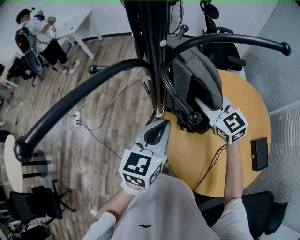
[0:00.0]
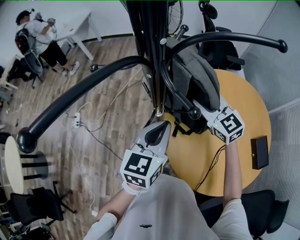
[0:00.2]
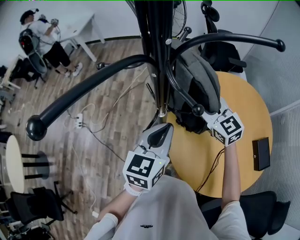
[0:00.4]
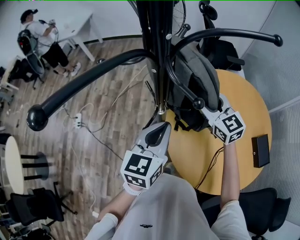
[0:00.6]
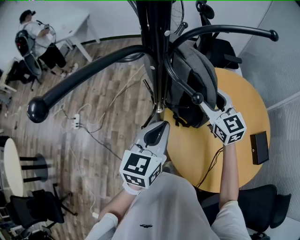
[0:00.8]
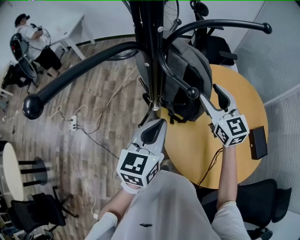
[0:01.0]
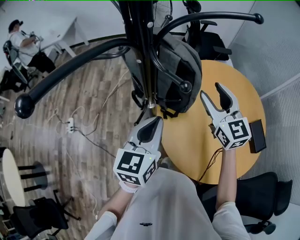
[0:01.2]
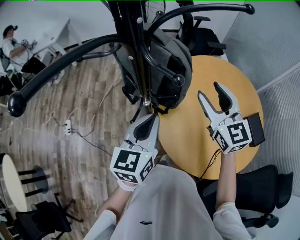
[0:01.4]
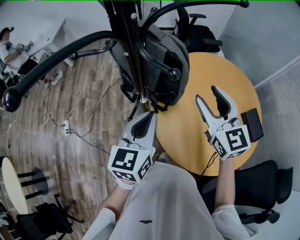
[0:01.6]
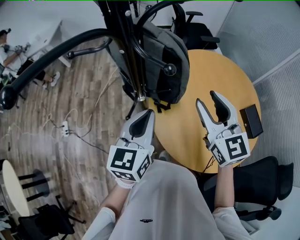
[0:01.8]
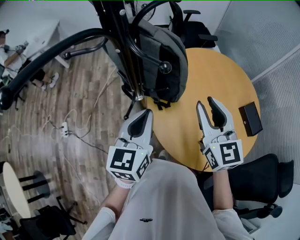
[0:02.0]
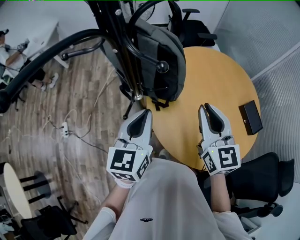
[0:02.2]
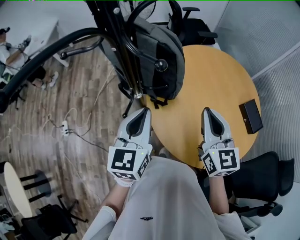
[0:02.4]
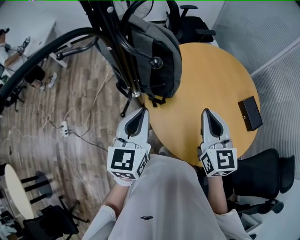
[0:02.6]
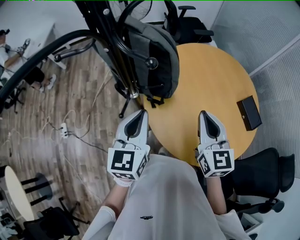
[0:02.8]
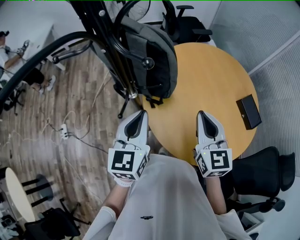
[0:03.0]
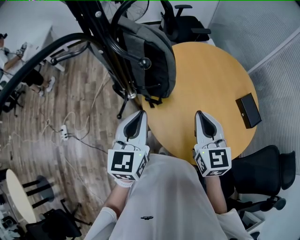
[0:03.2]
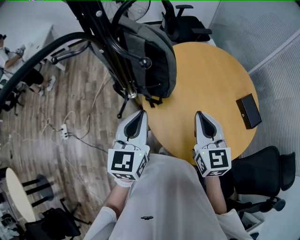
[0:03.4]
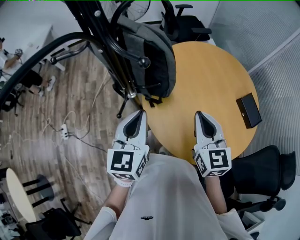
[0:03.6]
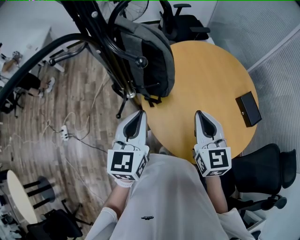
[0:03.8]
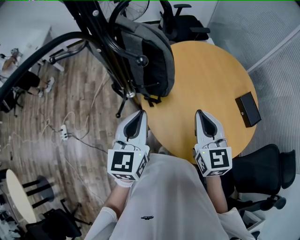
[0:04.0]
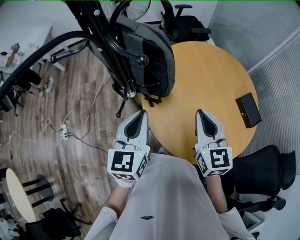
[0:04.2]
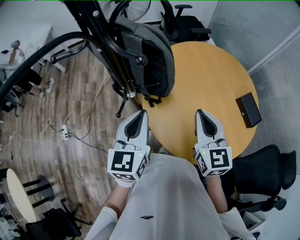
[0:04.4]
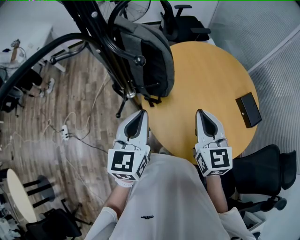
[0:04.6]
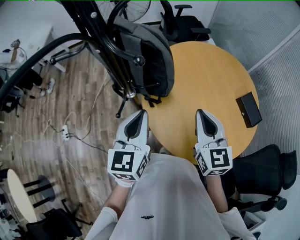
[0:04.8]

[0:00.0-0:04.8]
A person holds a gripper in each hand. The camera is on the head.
0:00.0 to 0:01.6: The right gripper travels backward, upward and to the right by approximately 15 cm, changes its angle by about 30 degrees, and opens up.
0:01.6 to 0:03.2: The right gripper heads backward and downward, covering approximately 10 cm, and closes.
0:03.2 to 0:04.8: Both grippers stay about where they are.

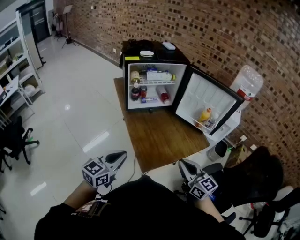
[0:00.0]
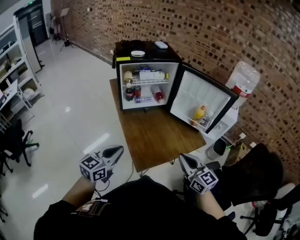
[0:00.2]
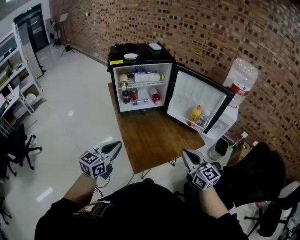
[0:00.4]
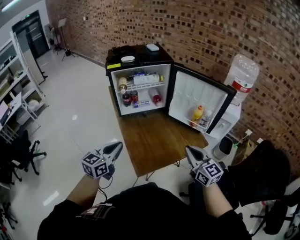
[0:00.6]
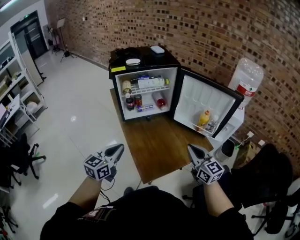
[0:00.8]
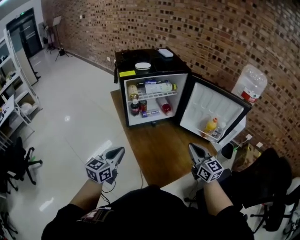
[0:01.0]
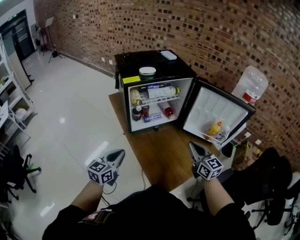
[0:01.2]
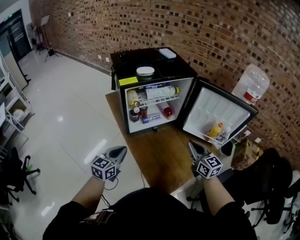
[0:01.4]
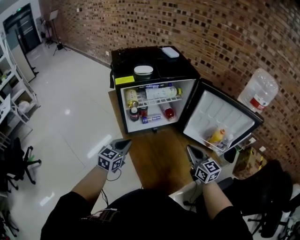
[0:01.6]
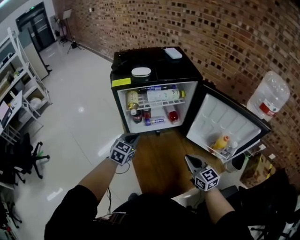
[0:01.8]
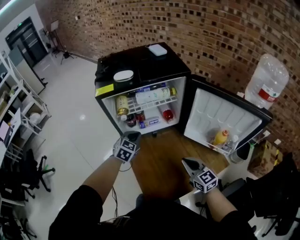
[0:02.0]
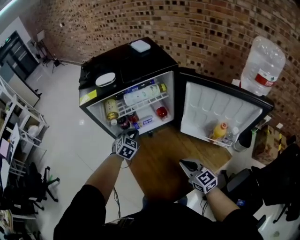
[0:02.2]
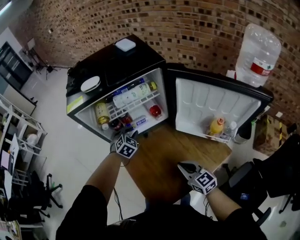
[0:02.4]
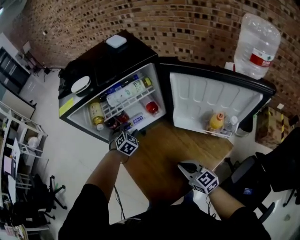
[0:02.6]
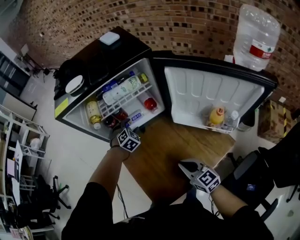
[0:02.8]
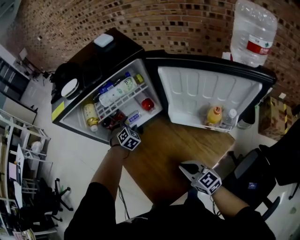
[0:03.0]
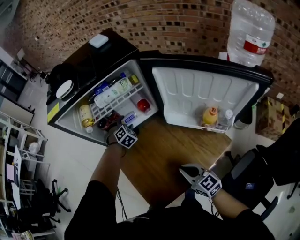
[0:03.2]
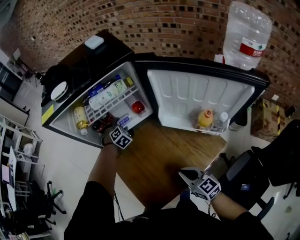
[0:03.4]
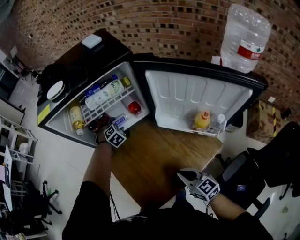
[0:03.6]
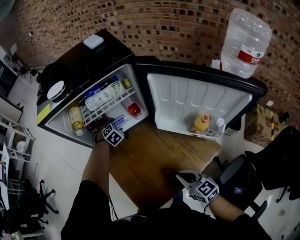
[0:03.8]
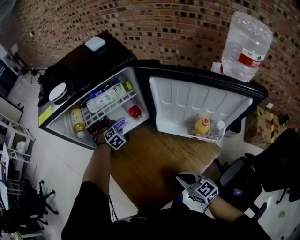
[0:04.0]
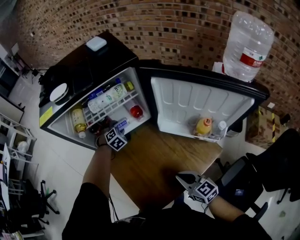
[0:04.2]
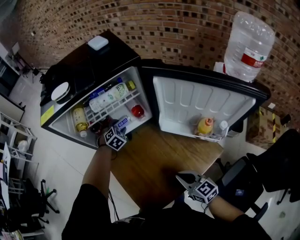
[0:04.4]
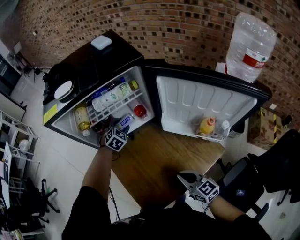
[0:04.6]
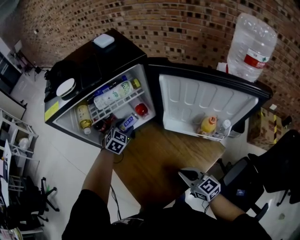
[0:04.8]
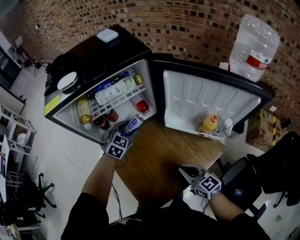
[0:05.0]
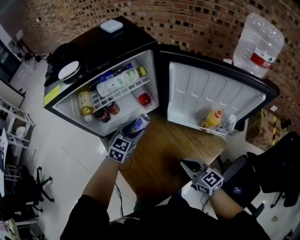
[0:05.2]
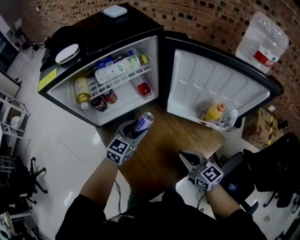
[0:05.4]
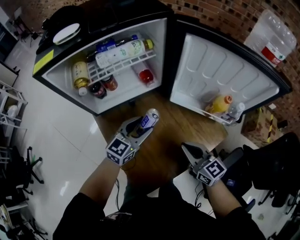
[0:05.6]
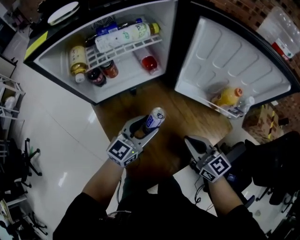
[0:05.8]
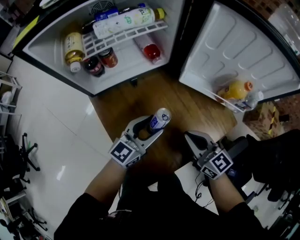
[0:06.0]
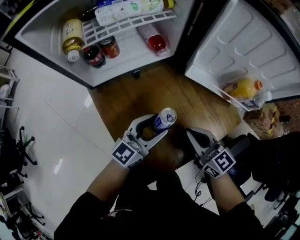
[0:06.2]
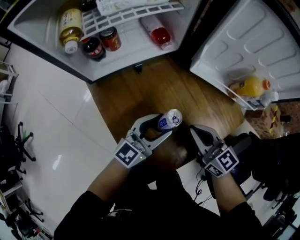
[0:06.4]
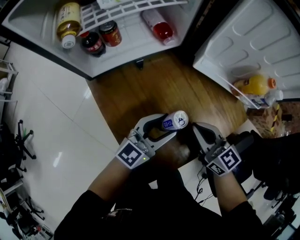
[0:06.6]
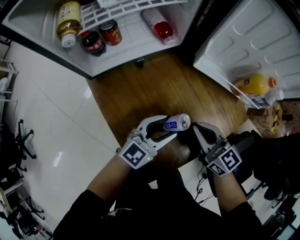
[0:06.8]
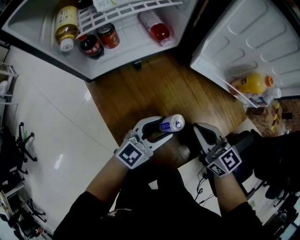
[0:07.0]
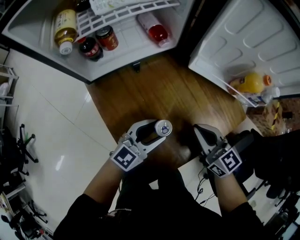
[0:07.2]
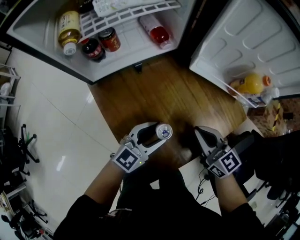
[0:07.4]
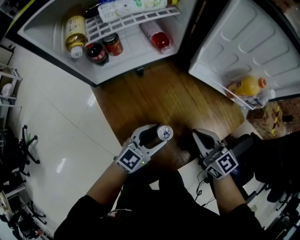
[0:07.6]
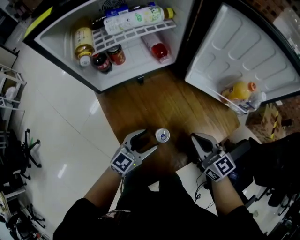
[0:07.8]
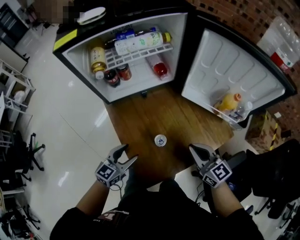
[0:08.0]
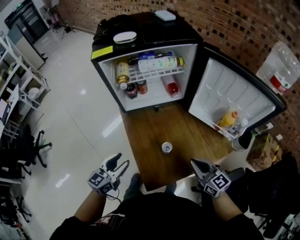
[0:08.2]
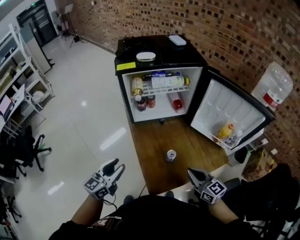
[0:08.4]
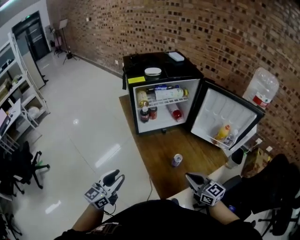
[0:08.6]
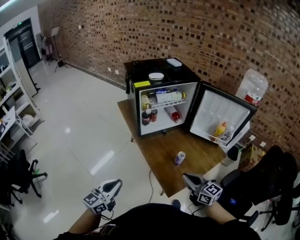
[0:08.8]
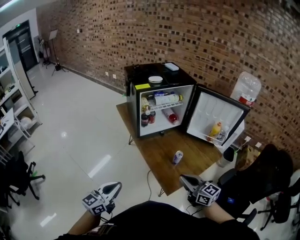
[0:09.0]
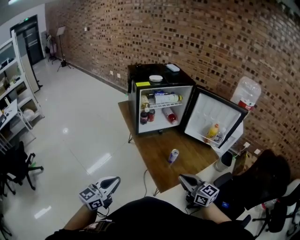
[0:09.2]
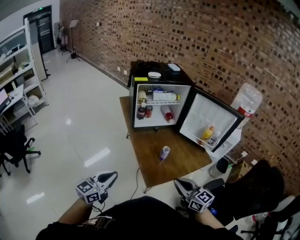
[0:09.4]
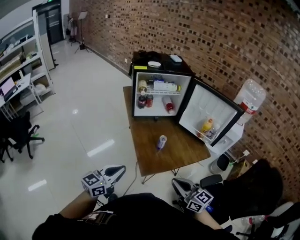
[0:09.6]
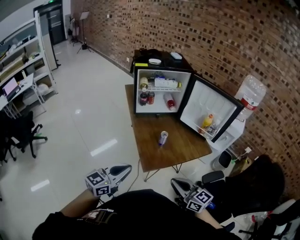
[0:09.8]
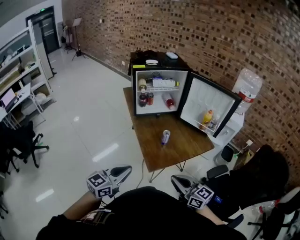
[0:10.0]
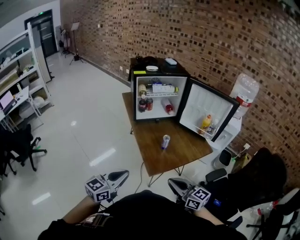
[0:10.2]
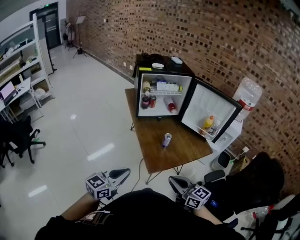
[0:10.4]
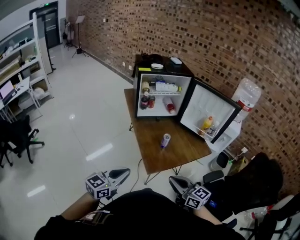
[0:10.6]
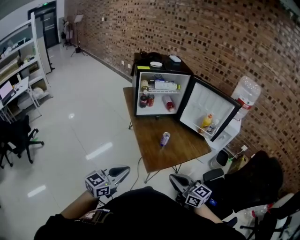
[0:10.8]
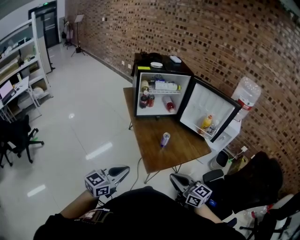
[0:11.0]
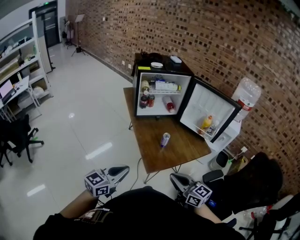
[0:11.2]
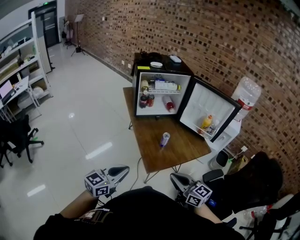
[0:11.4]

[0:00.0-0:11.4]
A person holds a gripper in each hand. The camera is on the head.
0:00.0 to 0:01.4: The two grippers go some 30 cm forward.
0:01.4 to 0:02.8: The left gripper is displaced forward, to the right and downward by approximately 40 cm, angles its fingers downward, by approximately 30 degrees, and opens its fingers. The right gripper is displaced downward by some 20 cm.
0:02.8 to 0:04.2: The right gripper ends up about 5 cm from where it was. The left gripper shifts by roughly 5 cm.
0:04.2 to 0:05.6: The left gripper shifts by roughly 25 cm, and points its fingers about 40 degrees further upward.
0:05.6 to 0:07.2: The left gripper is displaced backward and downward by about 15 cm; the right gripper goes about 5 cm downward.
0:07.2 to 0:08.6: The right gripper is displaced upward, backward and to the left by approximately 25 cm. The left gripper moves to the left, upward and backward, roughly 40 cm, and swivels roughly 30 degrees.
0:08.6 to 0:10.0: The right gripper is displaced backward by roughly 25 cm; the left gripper heads backward and to the right, covering about 25 cm, and closes up.
0:10.0 to 0:11.4: There are only small adjustments of the grippers.

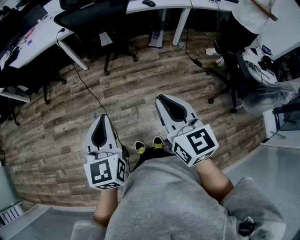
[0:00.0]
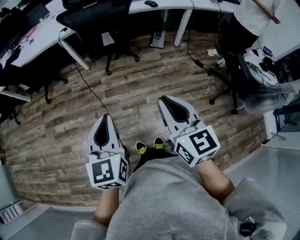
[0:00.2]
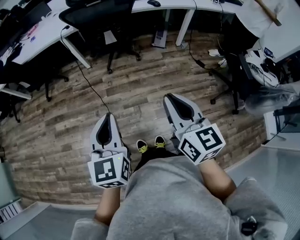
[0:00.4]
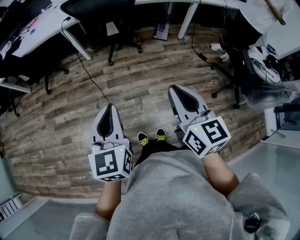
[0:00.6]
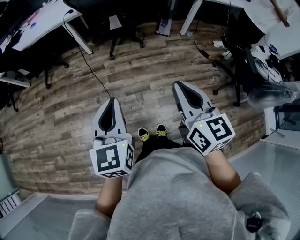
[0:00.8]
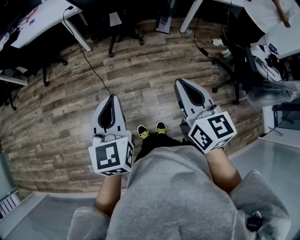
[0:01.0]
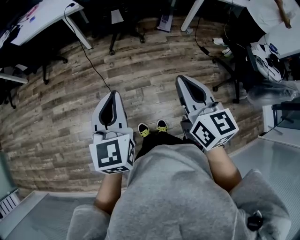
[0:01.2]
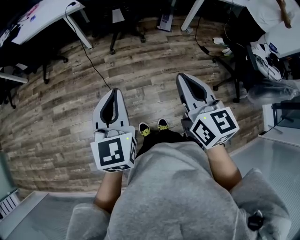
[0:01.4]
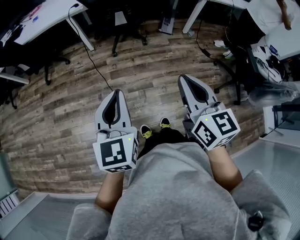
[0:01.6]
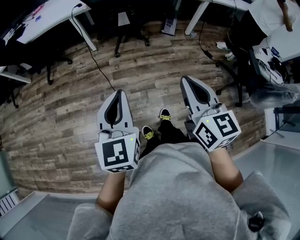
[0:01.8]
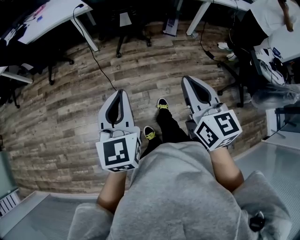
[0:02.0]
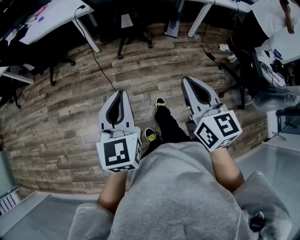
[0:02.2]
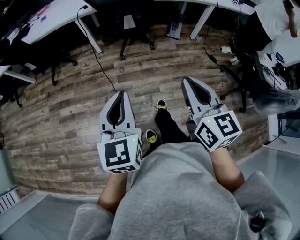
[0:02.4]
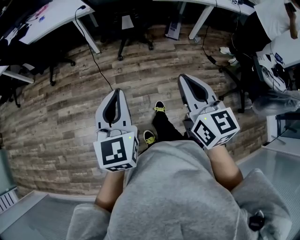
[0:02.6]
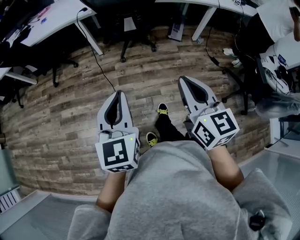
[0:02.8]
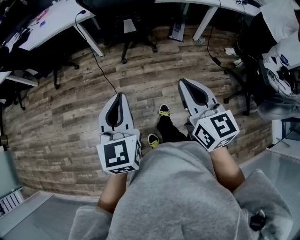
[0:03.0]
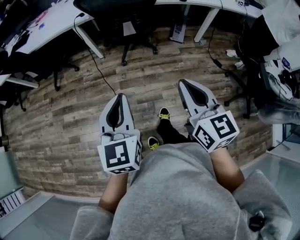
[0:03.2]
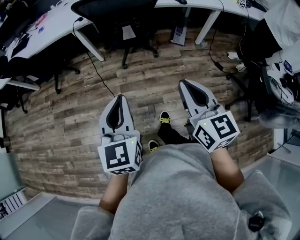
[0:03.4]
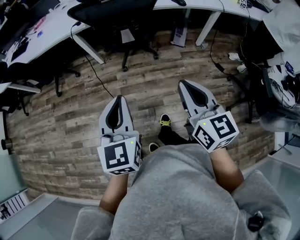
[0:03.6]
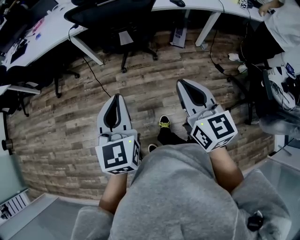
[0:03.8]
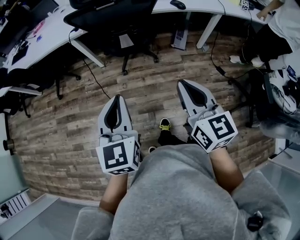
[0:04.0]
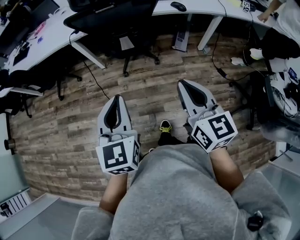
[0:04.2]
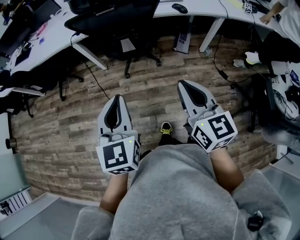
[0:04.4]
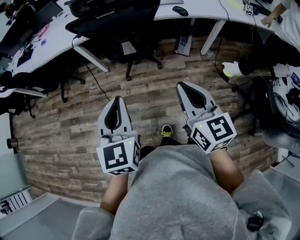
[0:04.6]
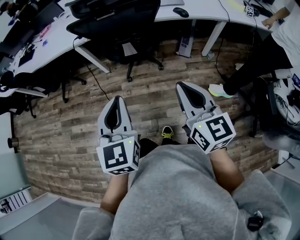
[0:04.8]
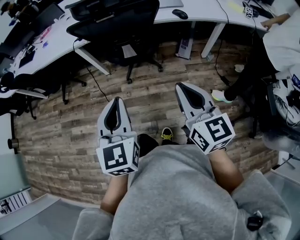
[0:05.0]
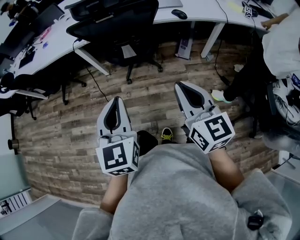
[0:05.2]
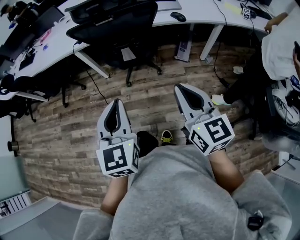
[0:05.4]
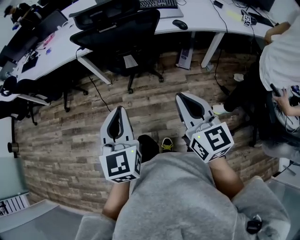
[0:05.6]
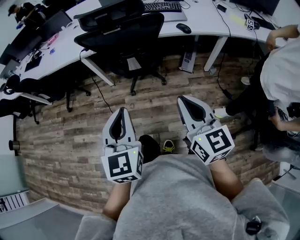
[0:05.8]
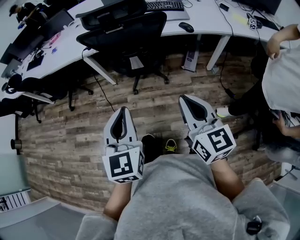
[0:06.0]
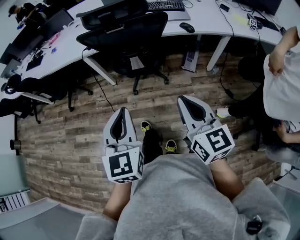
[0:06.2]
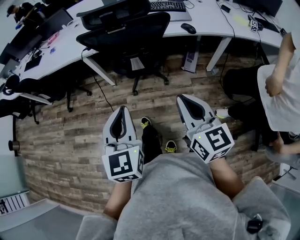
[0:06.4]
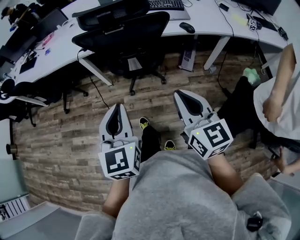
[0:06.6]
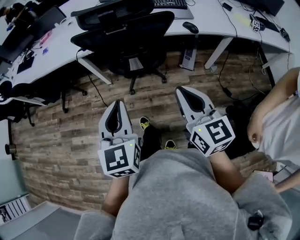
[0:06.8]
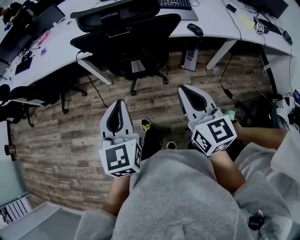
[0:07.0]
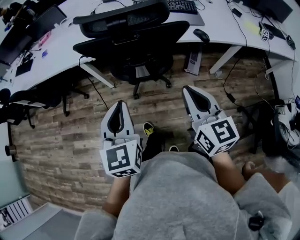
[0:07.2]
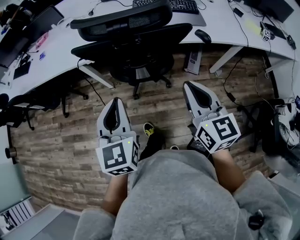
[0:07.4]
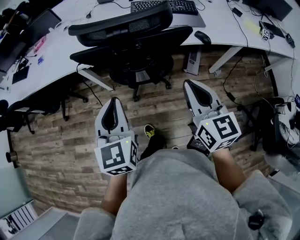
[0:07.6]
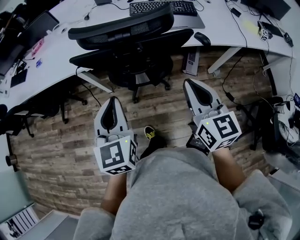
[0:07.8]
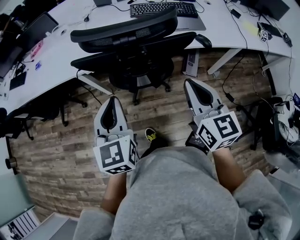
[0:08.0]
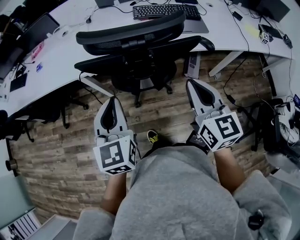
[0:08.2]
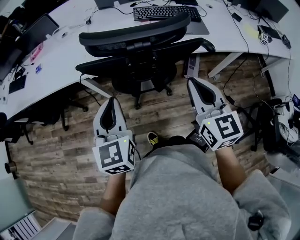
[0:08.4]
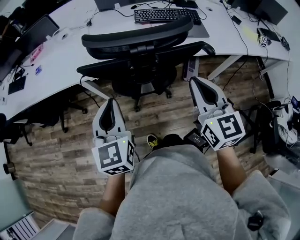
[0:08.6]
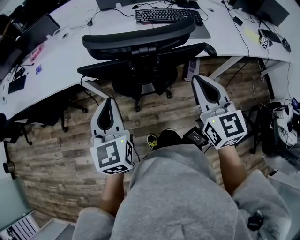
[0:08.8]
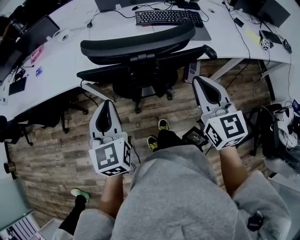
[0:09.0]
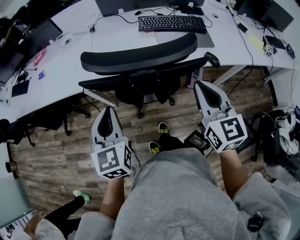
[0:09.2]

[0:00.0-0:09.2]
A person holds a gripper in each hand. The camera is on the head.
0:00.0 to 0:01.6: The grippers both shift to the left by roughly 5 cm.
0:01.6 to 0:03.0: Both grippers move forward, approximately 5 cm.
0:03.0 to 0:04.6: Both grippers move forward and to the right, about 20 cm.
0:04.6 to 0:06.2: The grippers make only small movements.
0:06.2 to 0:07.6: Both grippers travel together forward, some 25 cm.
0:07.6 to 0:09.2: The right gripper heads forward, covering roughly 10 cm; the left gripper goes approximately 15 cm forward and to the left.
